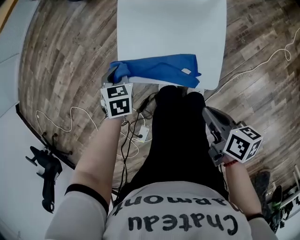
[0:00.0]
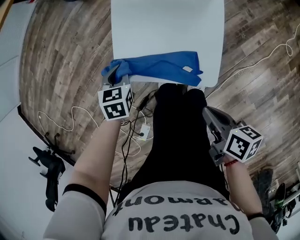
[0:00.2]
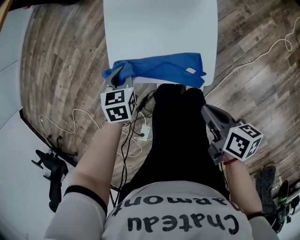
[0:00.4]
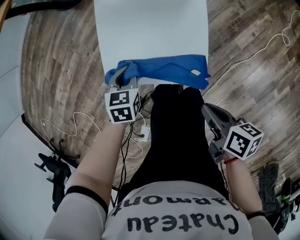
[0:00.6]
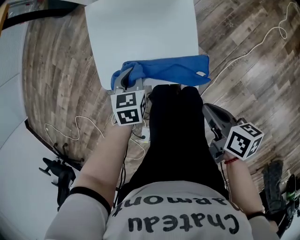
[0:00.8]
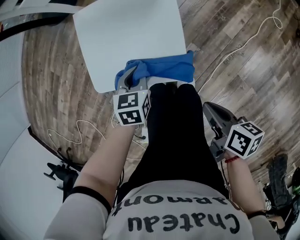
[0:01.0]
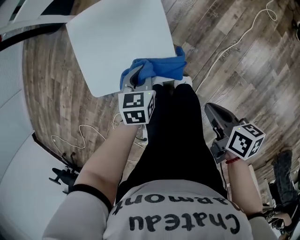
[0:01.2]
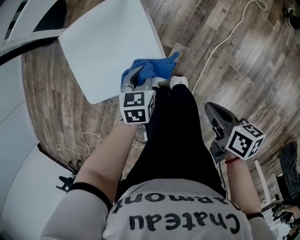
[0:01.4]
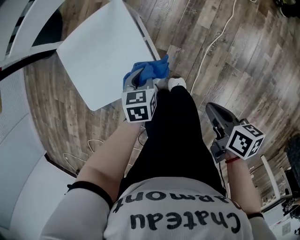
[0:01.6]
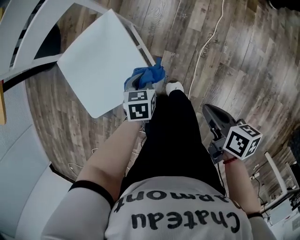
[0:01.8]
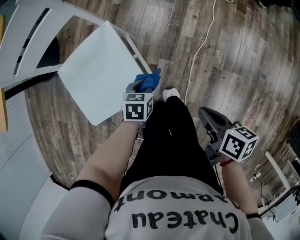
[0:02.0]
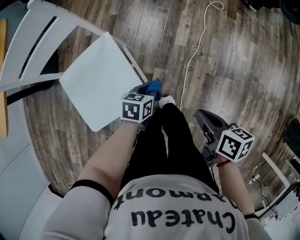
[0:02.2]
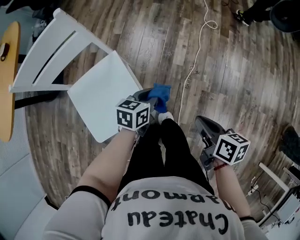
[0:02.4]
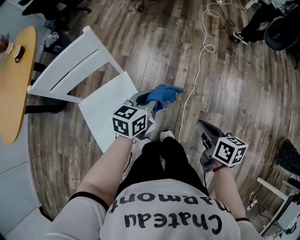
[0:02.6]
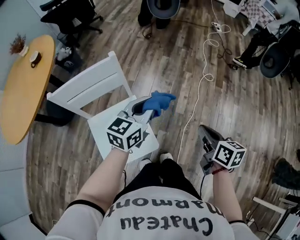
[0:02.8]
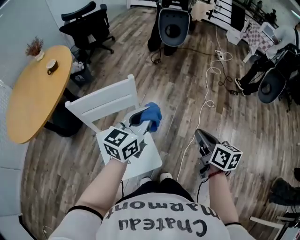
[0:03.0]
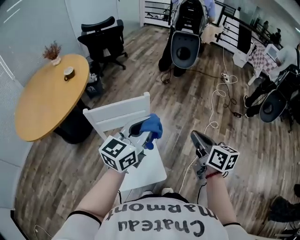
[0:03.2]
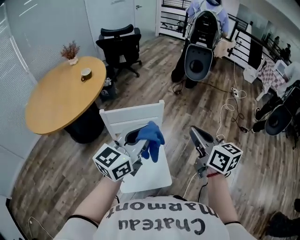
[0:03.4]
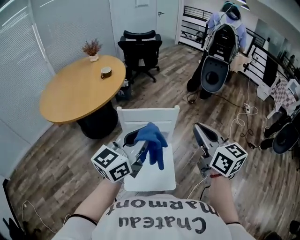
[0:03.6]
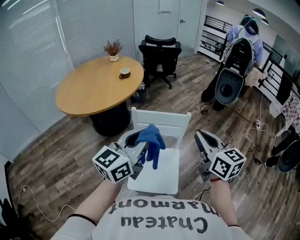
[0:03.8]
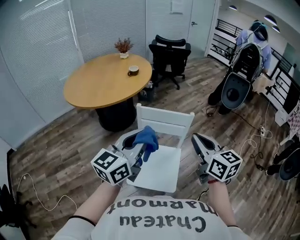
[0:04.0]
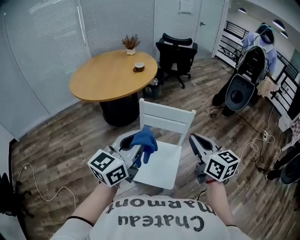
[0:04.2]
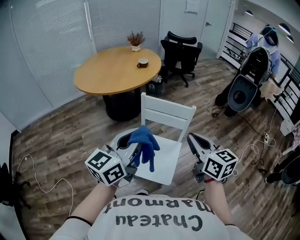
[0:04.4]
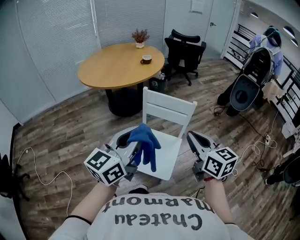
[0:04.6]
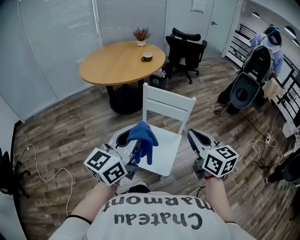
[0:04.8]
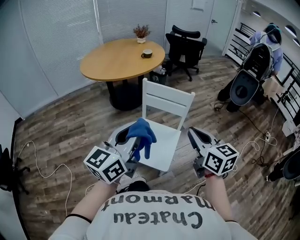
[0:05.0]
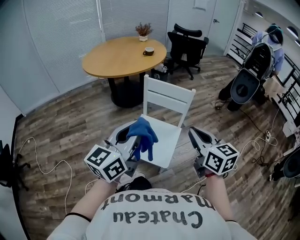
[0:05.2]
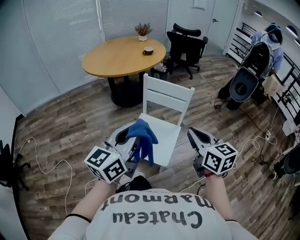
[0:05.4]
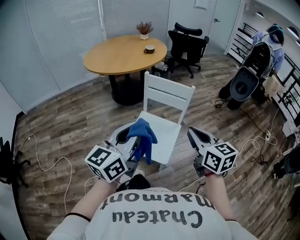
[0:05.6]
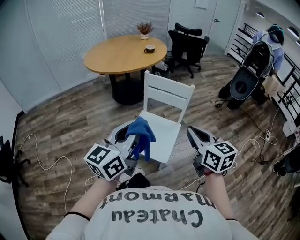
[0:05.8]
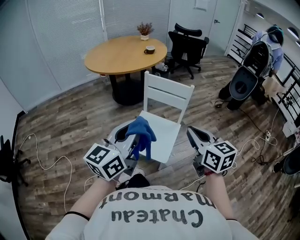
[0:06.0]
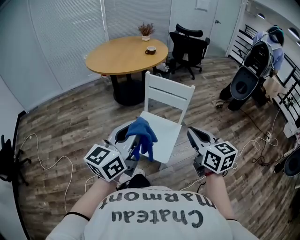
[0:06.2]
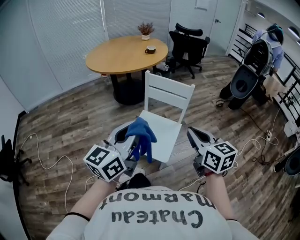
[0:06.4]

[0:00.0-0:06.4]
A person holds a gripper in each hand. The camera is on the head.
0:00.0 to 0:01.6: The right gripper moves some 20 cm, and rotates approximately 30 degrees, while the left gripper changes place by about 35 cm, and rotates about 30 degrees.
0:01.6 to 0:03.2: Both grippers move upward, some 50 cm. The left gripper points its fingers some 60 degrees further upward. The right gripper turns by about 40 degrees.
0:03.2 to 0:04.8: The left gripper shifts by about 25 cm, and swivels about 40 degrees. The right gripper moves some 15 cm, and swivels roughly 50 degrees.
0:04.8 to 0:06.4: Both grippers travel together backward, some 10 cm.

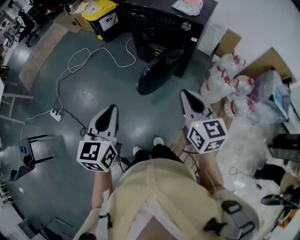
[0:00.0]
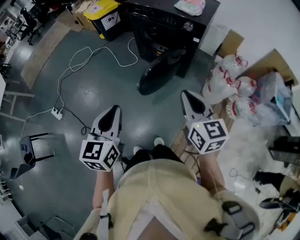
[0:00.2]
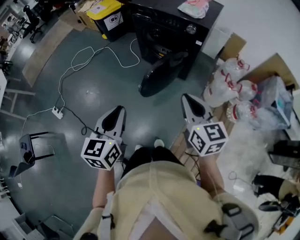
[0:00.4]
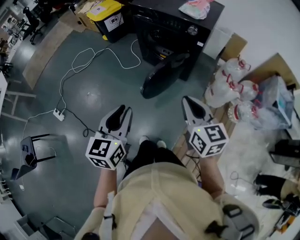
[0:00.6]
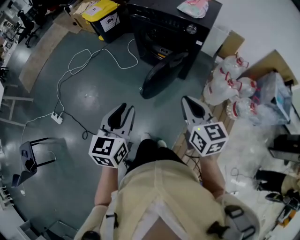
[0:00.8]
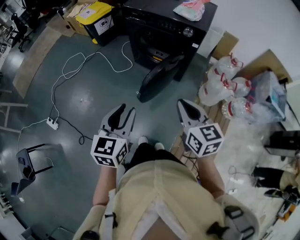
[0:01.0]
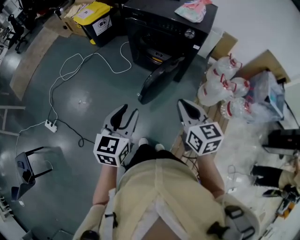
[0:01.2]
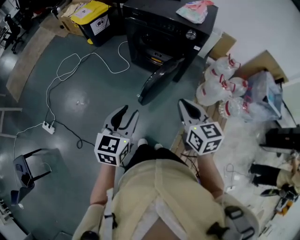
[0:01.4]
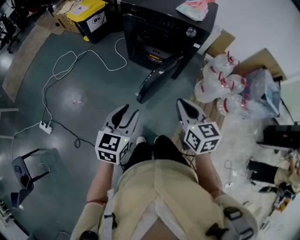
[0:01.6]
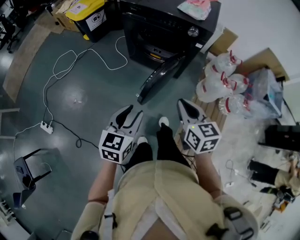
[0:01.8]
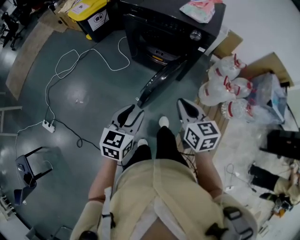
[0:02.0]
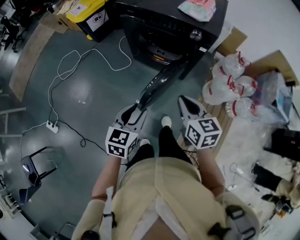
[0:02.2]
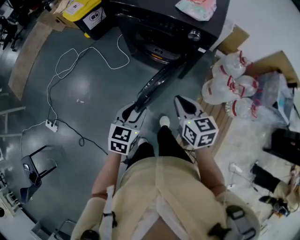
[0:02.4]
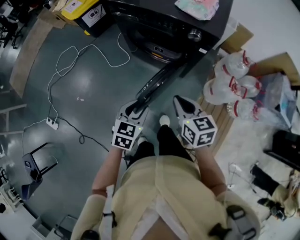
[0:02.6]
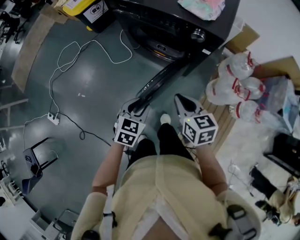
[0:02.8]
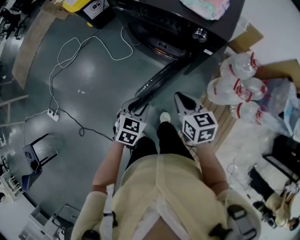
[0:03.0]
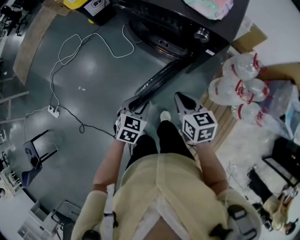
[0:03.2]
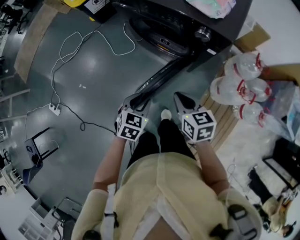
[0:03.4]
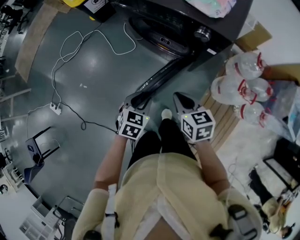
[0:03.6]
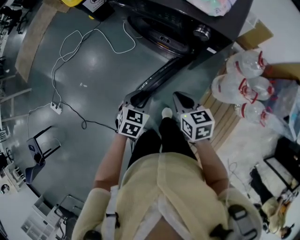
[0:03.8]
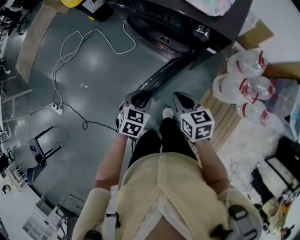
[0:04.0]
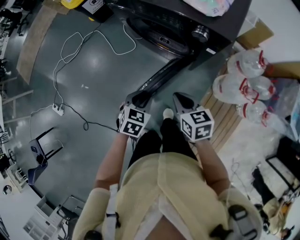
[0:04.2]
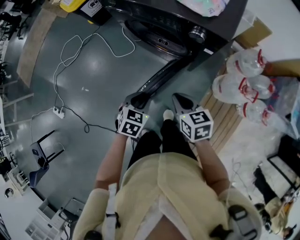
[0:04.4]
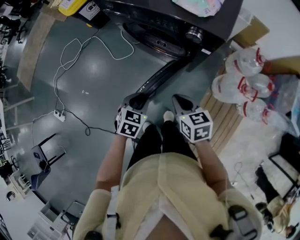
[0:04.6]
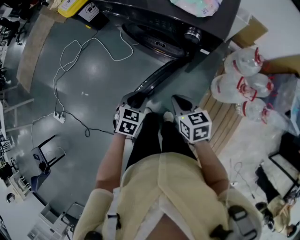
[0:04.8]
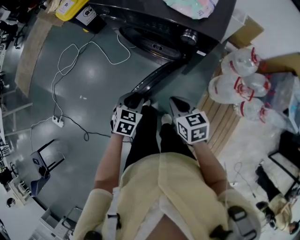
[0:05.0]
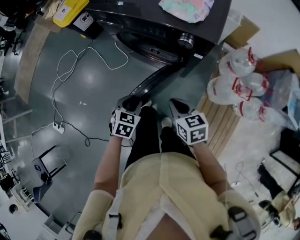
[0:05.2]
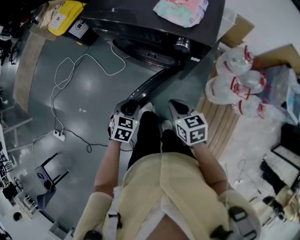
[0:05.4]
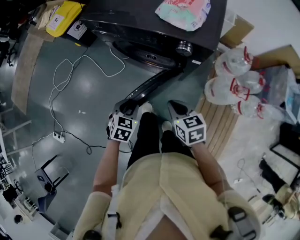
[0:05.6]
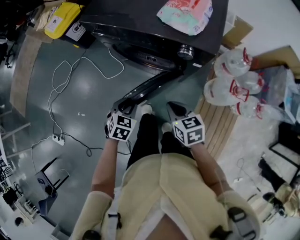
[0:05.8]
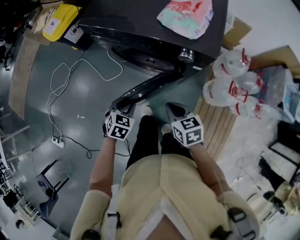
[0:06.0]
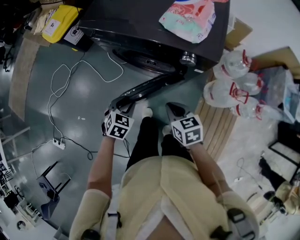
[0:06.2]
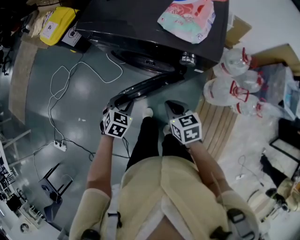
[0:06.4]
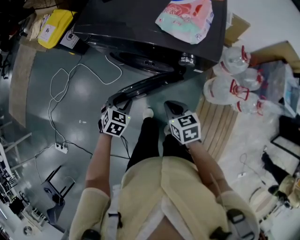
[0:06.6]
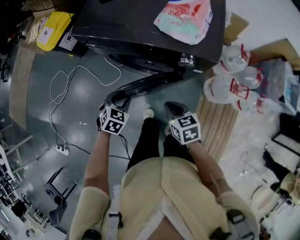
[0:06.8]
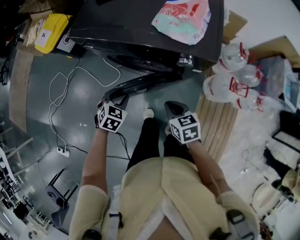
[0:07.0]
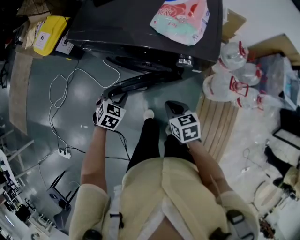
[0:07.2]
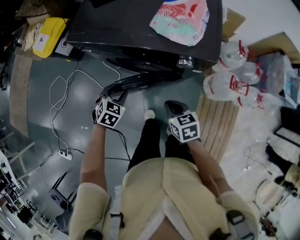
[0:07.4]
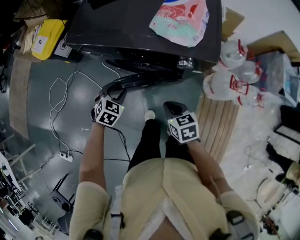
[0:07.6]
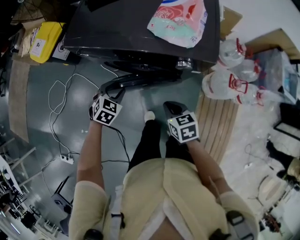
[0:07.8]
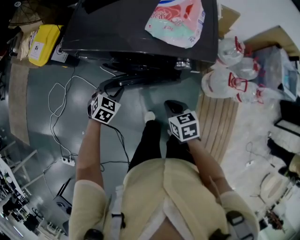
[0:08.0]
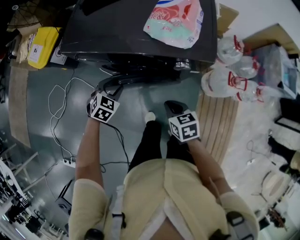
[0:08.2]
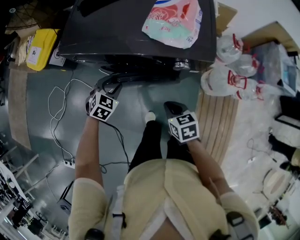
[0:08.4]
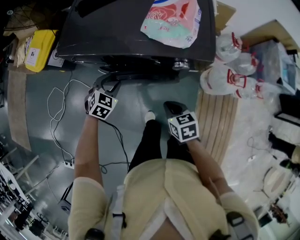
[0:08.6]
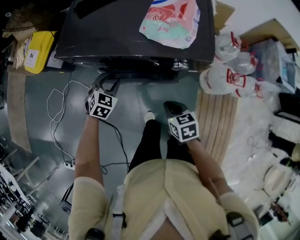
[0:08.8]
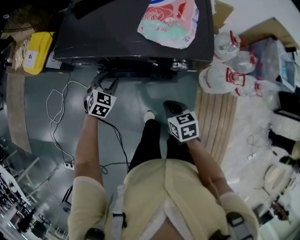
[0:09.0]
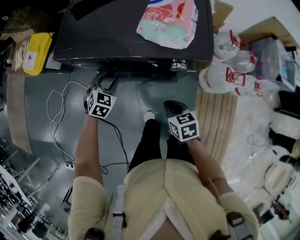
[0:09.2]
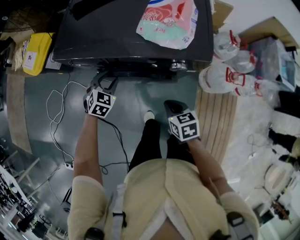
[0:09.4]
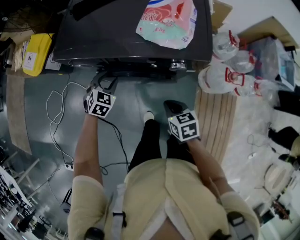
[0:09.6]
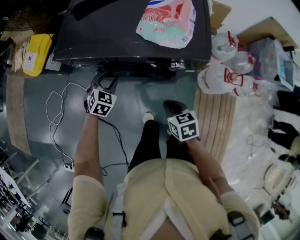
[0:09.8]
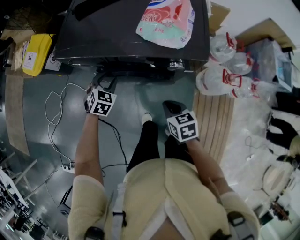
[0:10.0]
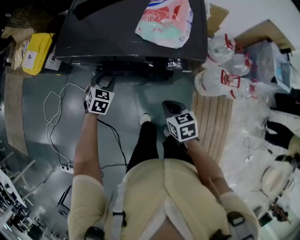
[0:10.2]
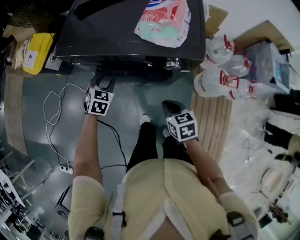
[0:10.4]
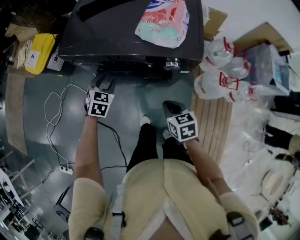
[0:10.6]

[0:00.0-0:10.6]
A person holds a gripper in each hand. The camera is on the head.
0:00.0 to 0:01.6: The left gripper shifts roughly 15 cm forward and downward, turns by about 20 degrees, and opens its fingers. The right gripper travels forward, to the left and downward by approximately 15 cm.
0:01.6 to 0:03.0: The right gripper goes about 25 cm forward and downward, while the left gripper travels forward, downward and to the right by approximately 25 cm, and rotates roughly 20 degrees.
0:03.0 to 0:04.6: The left gripper moves approximately 5 cm; the right gripper travels downward by approximately 5 cm.
0:04.6 to 0:06.0: The right gripper travels forward by some 5 cm, while the left gripper heads forward and to the left, covering roughly 10 cm.
0:06.0 to 0:07.6: The right gripper shifts by approximately 5 cm. The left gripper travels forward by approximately 15 cm.
0:07.6 to 0:09.0: The left gripper shifts roughly 10 cm forward.
0:09.0 to 0:10.6: The grippers move only a little.

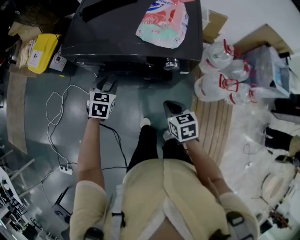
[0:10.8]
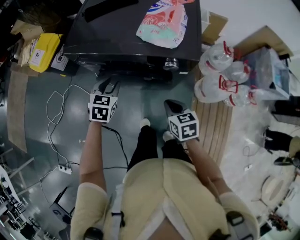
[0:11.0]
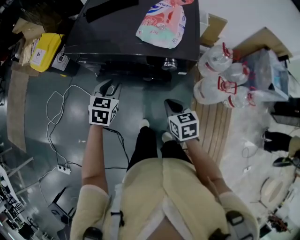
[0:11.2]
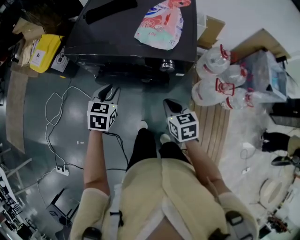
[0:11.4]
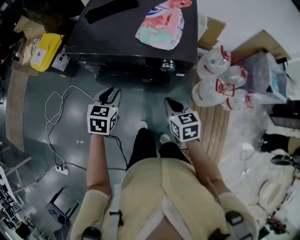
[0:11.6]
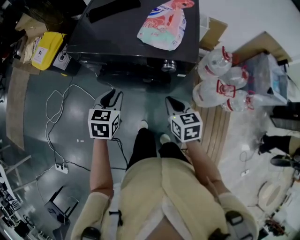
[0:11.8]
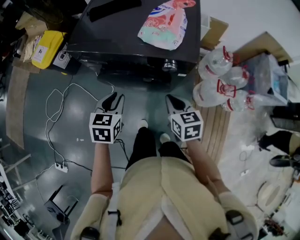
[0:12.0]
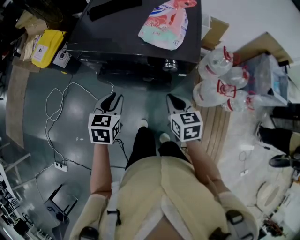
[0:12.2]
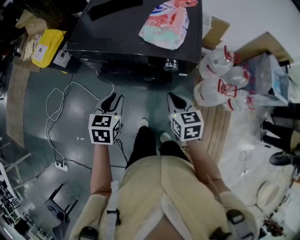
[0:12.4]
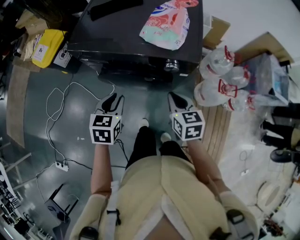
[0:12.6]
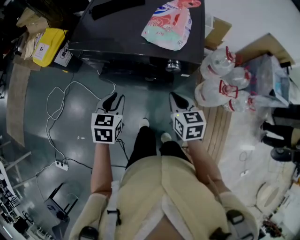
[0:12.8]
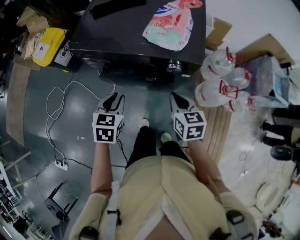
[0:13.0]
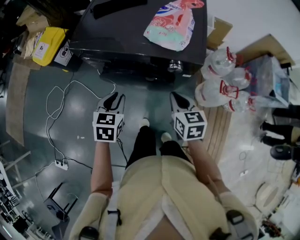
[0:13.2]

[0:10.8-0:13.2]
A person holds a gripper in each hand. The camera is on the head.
0:10.8 to 0:12.0: The right gripper goes some 5 cm upward, while the left gripper moves backward and upward, roughly 15 cm.
0:12.0 to 0:13.2: There are only small adjustments of the grippers.

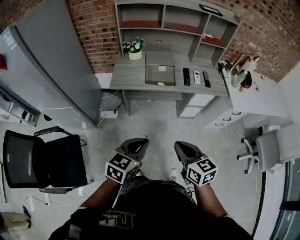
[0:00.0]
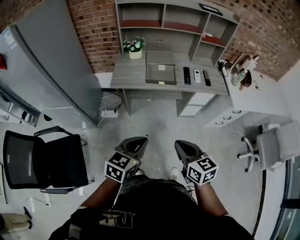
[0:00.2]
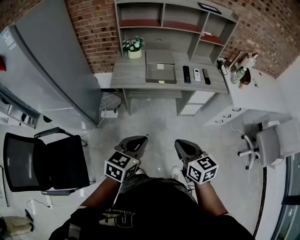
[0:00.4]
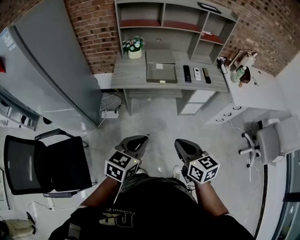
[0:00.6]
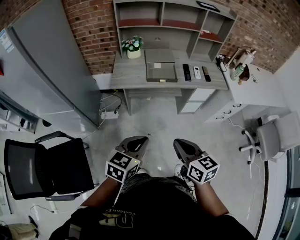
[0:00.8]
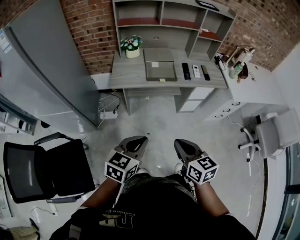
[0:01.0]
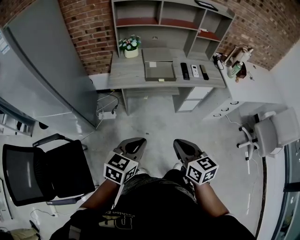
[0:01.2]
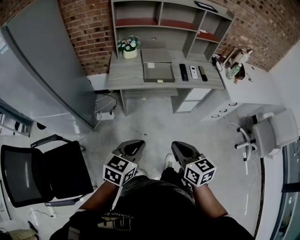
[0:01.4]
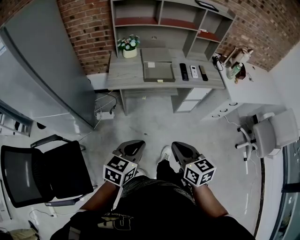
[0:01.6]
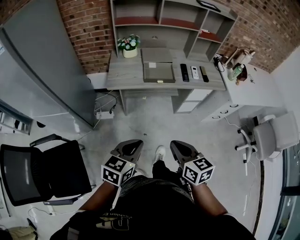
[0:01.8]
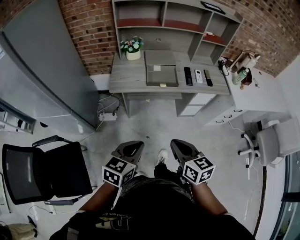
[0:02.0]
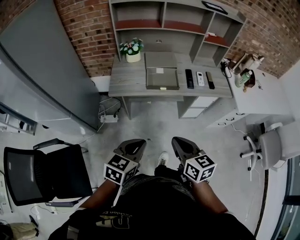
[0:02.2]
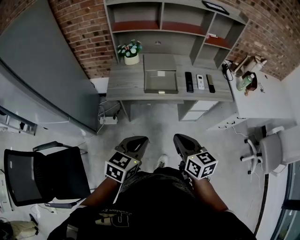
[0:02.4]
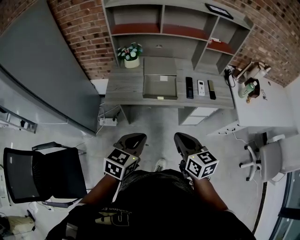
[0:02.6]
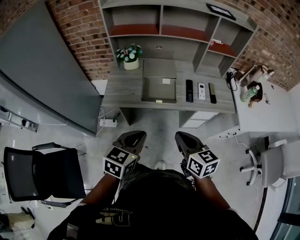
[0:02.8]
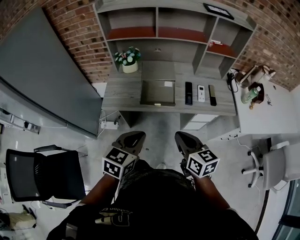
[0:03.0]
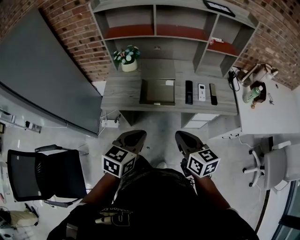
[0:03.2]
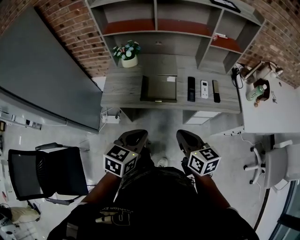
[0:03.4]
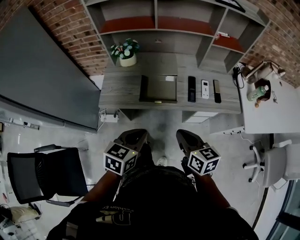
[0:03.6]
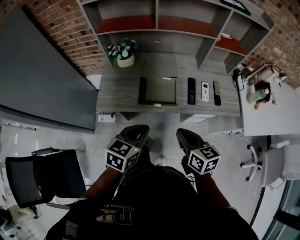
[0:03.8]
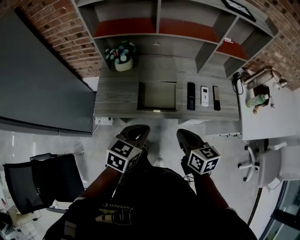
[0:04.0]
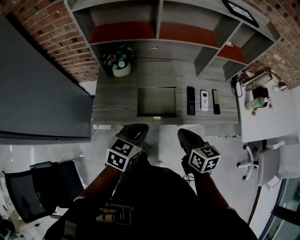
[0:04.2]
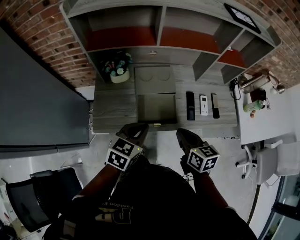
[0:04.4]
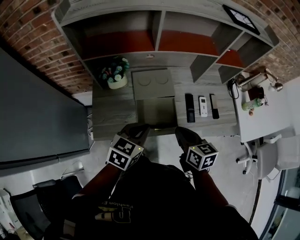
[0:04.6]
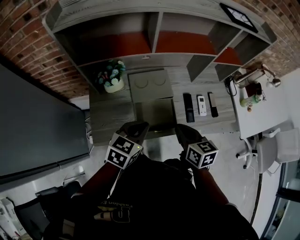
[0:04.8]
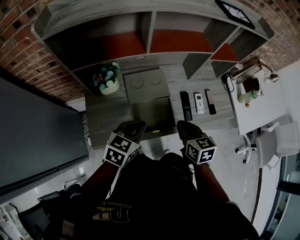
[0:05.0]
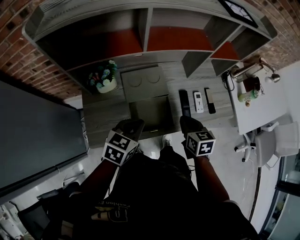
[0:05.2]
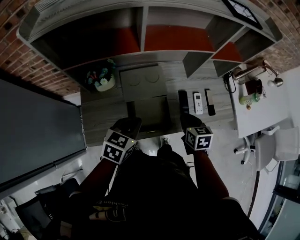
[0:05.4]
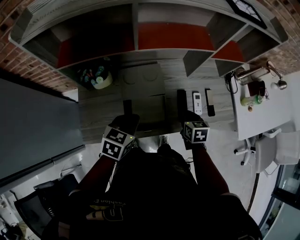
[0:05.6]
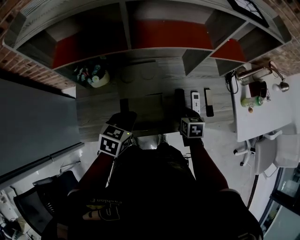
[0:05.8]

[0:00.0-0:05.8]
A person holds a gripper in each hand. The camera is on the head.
0:00.0 to 0:01.4: Both grippers travel together to the left, some 5 cm.
0:01.4 to 0:02.8: Both grippers travel together forward, roughly 25 cm.
0:02.8 to 0:04.4: Both grippers move forward, about 20 cm.
0:04.4 to 0:05.8: The right gripper moves forward, downward and to the right, approximately 25 cm, and swivels roughly 30 degrees. The left gripper goes approximately 15 cm forward and downward.
